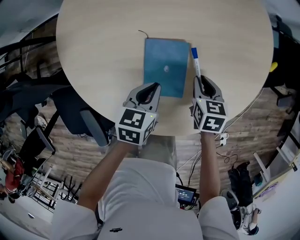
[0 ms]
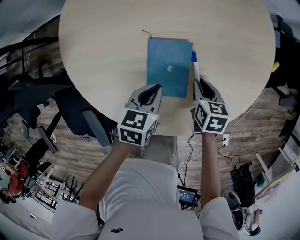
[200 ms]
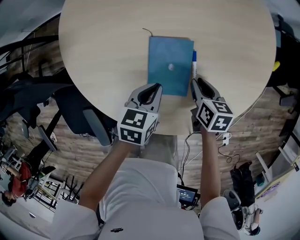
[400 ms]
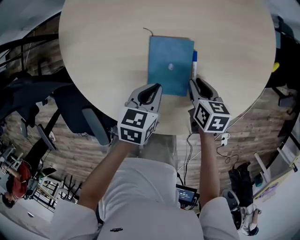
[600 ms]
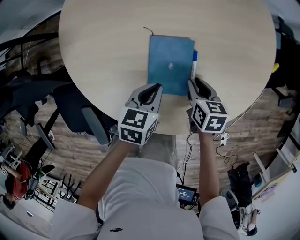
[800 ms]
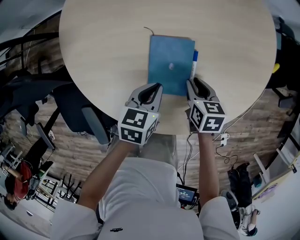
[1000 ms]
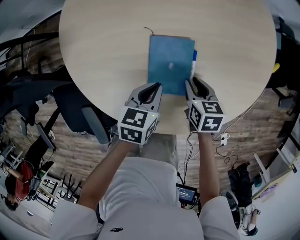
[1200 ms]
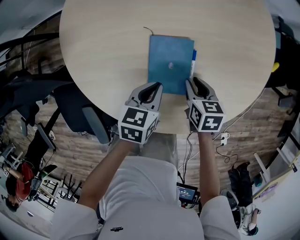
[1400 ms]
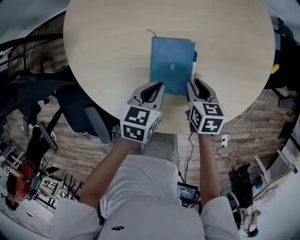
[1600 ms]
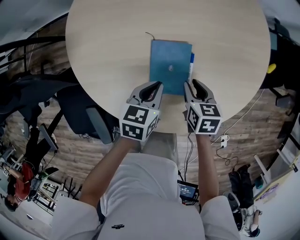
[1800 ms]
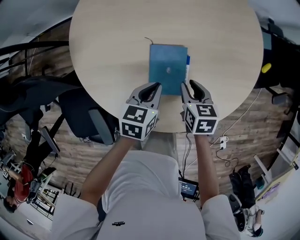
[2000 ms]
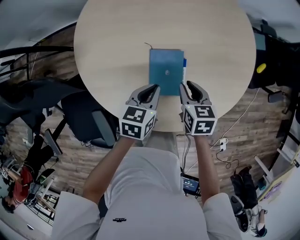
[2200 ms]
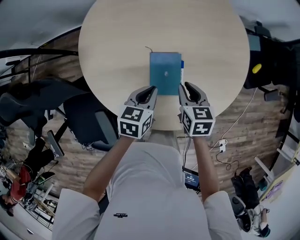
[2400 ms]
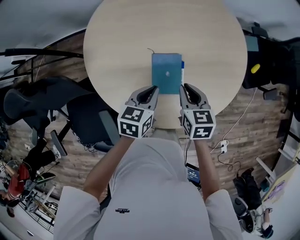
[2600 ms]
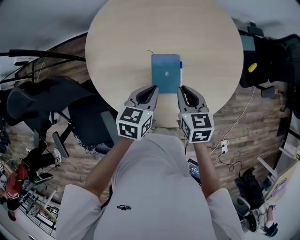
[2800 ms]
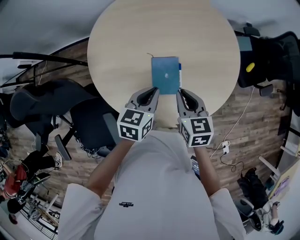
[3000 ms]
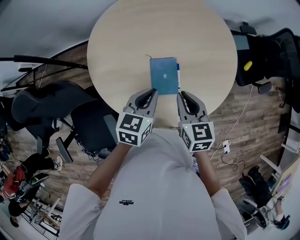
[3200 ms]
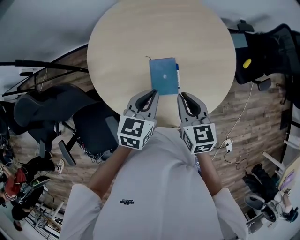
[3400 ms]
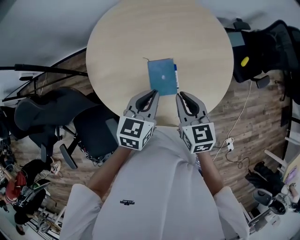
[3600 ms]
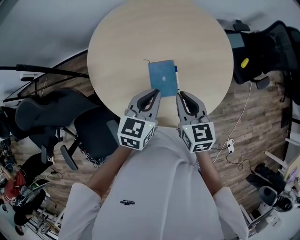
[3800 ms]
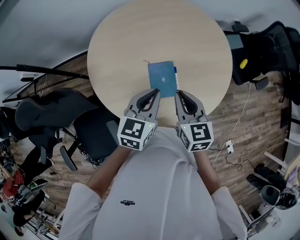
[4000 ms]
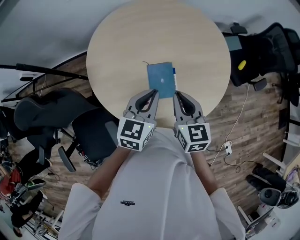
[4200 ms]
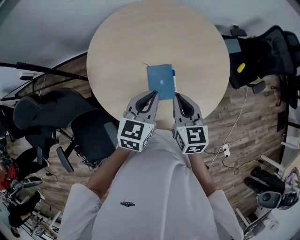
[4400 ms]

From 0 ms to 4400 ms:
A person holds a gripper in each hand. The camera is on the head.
From 0 ms to 1400 ms: The right gripper changes place by some 5 cm.
From 1400 ms to 3000 ms: The grippers both shift upward by roughly 25 cm. The right gripper changes its angle by about 20 degrees.
From 3000 ms to 4400 ms: Both grippers move upward, about 5 cm.

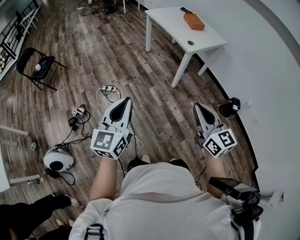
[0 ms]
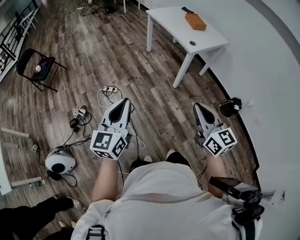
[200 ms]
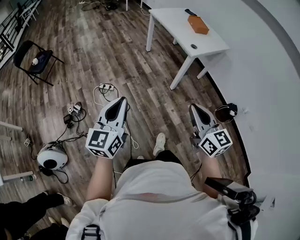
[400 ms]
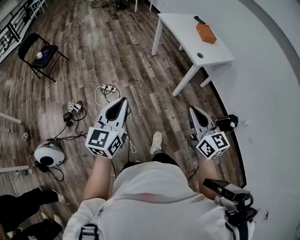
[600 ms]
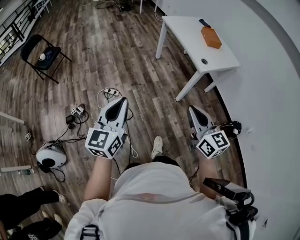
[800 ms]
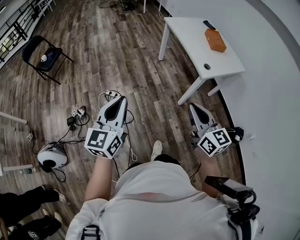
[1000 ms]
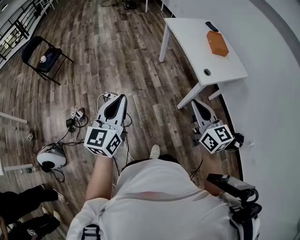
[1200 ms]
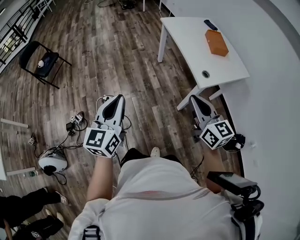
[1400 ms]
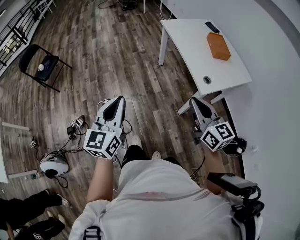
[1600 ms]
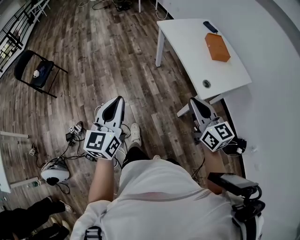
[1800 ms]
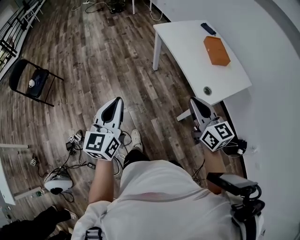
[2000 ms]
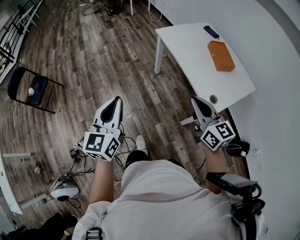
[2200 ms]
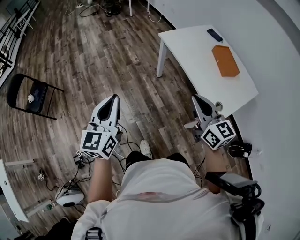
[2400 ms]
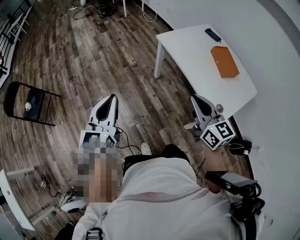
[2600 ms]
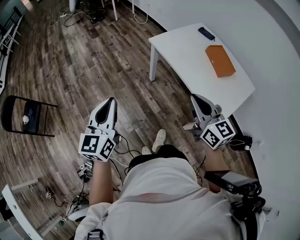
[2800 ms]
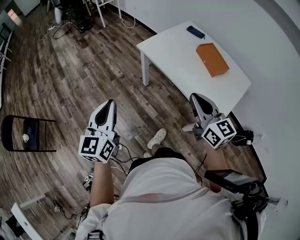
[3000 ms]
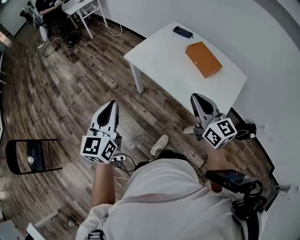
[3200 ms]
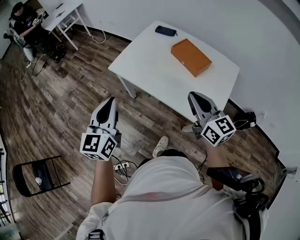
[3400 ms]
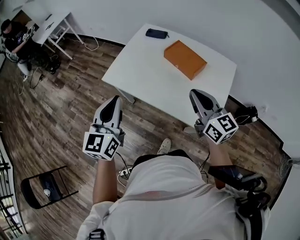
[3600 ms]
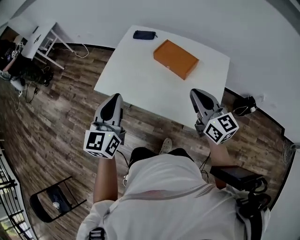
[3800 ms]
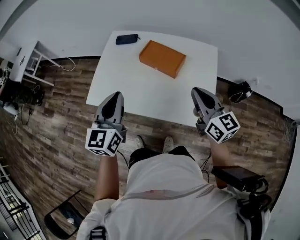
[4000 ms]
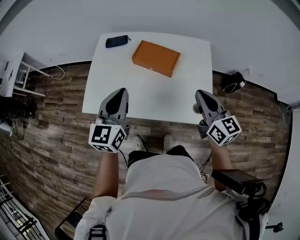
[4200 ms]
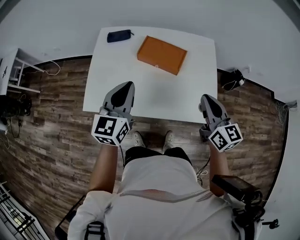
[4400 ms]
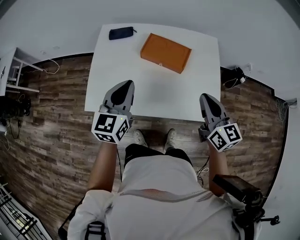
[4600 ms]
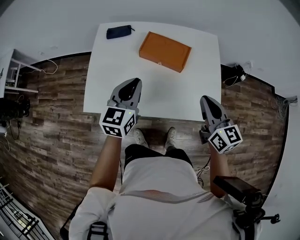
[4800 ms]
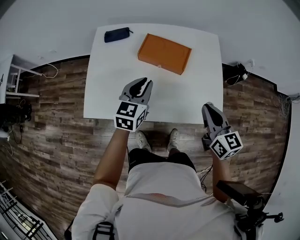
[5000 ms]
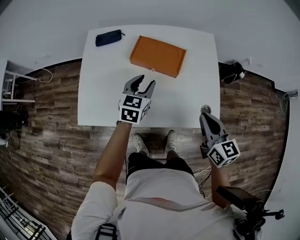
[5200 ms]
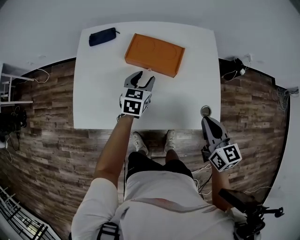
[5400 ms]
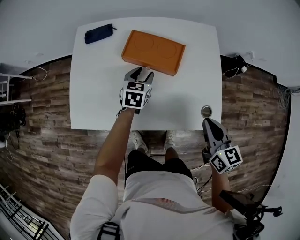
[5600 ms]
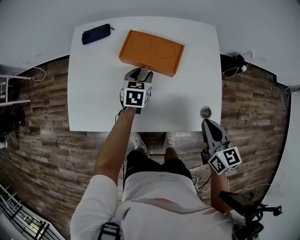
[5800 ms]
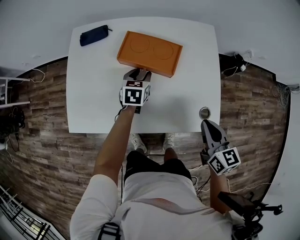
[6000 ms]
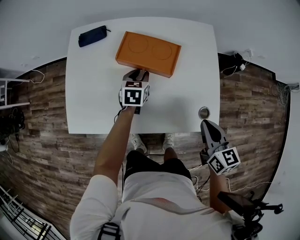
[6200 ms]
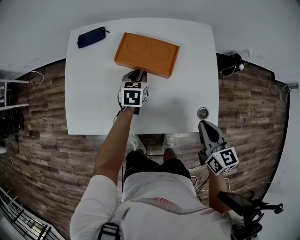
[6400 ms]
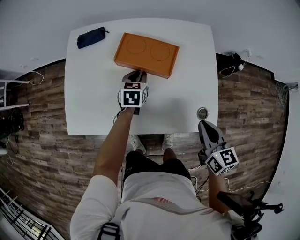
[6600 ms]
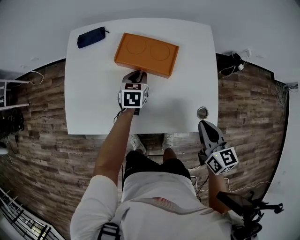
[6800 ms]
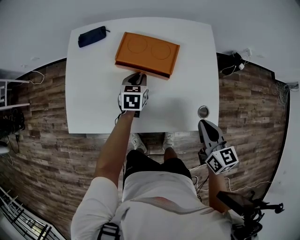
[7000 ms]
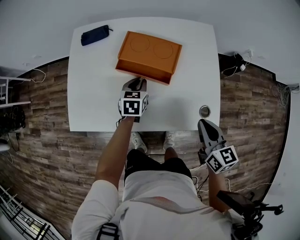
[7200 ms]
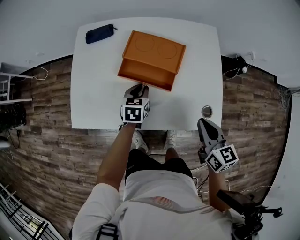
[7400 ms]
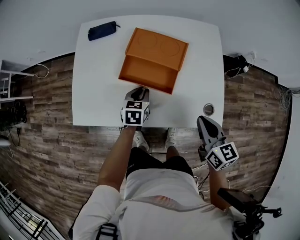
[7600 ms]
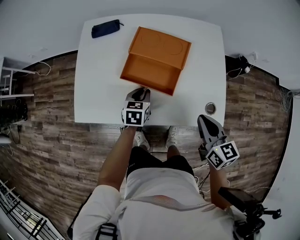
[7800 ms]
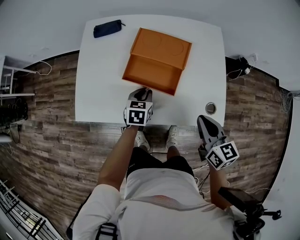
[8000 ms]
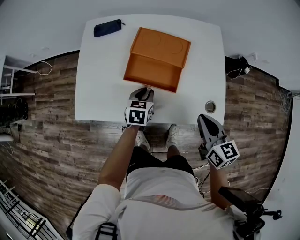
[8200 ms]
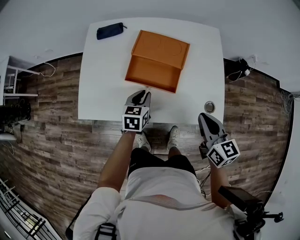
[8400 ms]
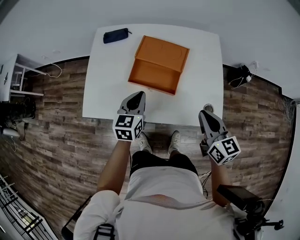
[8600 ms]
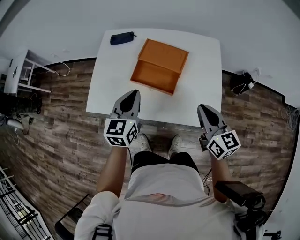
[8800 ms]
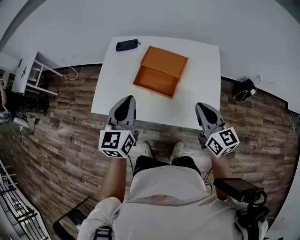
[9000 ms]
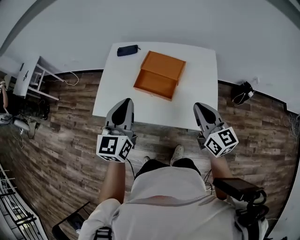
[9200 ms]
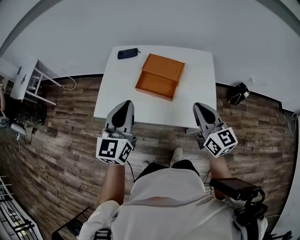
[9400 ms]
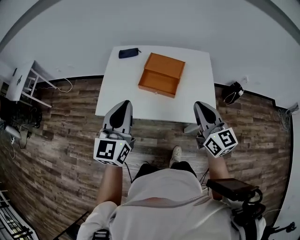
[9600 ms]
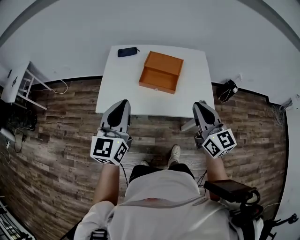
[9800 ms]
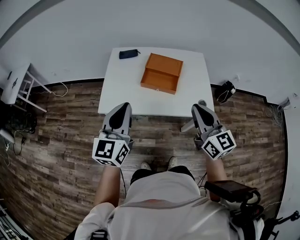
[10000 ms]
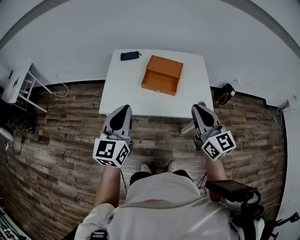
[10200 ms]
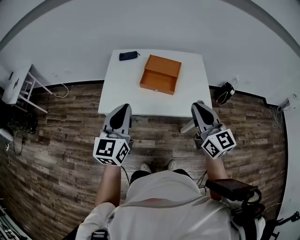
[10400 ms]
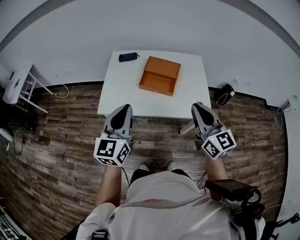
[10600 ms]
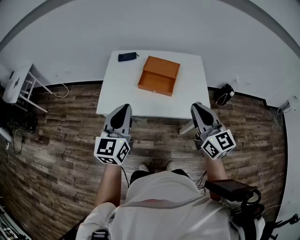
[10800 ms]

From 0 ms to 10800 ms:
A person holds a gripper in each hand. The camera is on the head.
From 0 ms to 1600 ms: Both grippers move forward, about 40 cm.
From 1600 ms to 3000 ms: The two grippers go roughly 40 cm forward. The right gripper changes its angle by approximately 20 degrees.
From 3000 ms to 4600 ms: The left gripper shifts by about 50 cm, and changes its angle by roughly 50 degrees. The right gripper moves approximately 25 cm, and turns by about 50 degrees.
From 4600 ms to 6200 ms: The right gripper heads downward and to the right, covering some 15 cm; the left gripper moves downward, forward and to the right, some 35 cm, tips its fingers downward by about 30 degrees, and opens up.
From 6200 ms to 7800 ms: The left gripper travels backward by about 10 cm; the right gripper moves roughly 5 cm.
From 7800 ms to 9200 ms: The left gripper is displaced upward and backward by roughly 35 cm, and tilts its fingers approximately 40 degrees upward; the right gripper moves upward, roughly 15 cm, and turns by some 20 degrees.
From 9200 ms to 10800 ms: The left gripper heads to the left and backward, covering about 15 cm. Meanwhile the right gripper goes some 20 cm to the left, backward and upward.

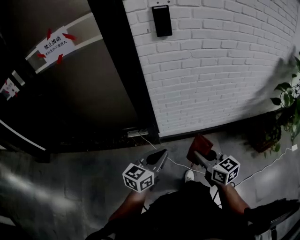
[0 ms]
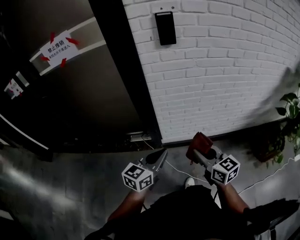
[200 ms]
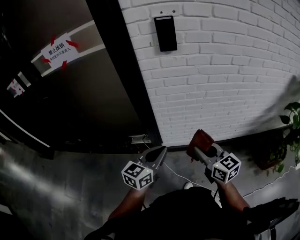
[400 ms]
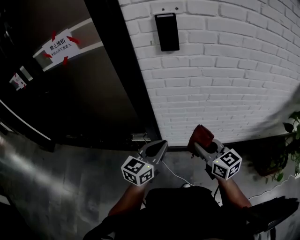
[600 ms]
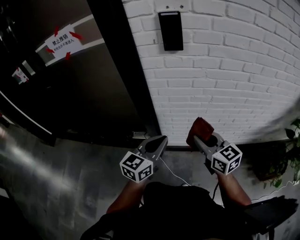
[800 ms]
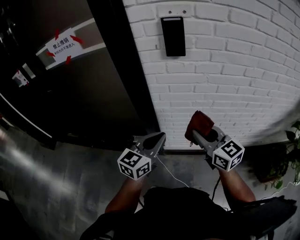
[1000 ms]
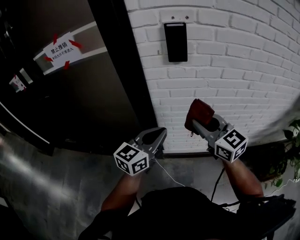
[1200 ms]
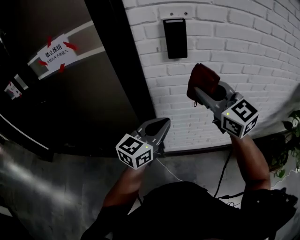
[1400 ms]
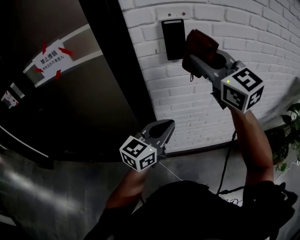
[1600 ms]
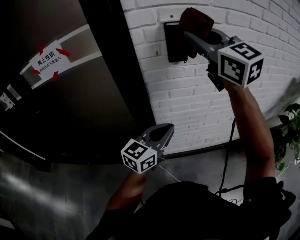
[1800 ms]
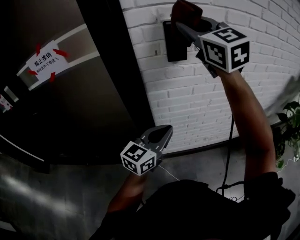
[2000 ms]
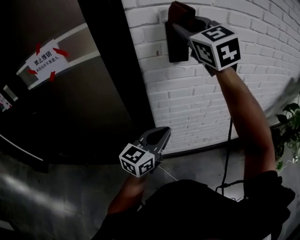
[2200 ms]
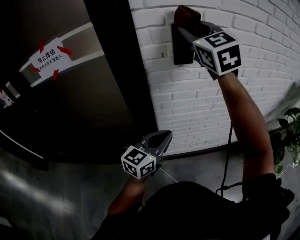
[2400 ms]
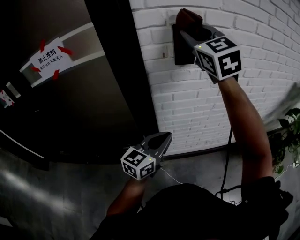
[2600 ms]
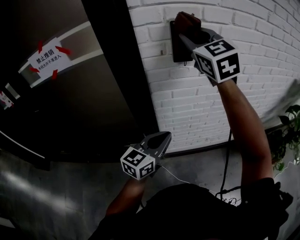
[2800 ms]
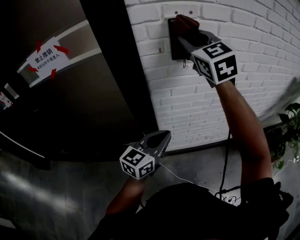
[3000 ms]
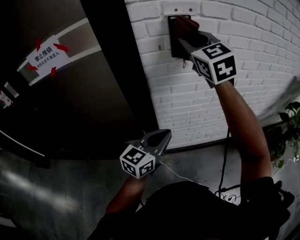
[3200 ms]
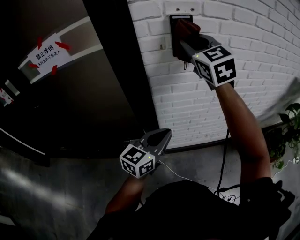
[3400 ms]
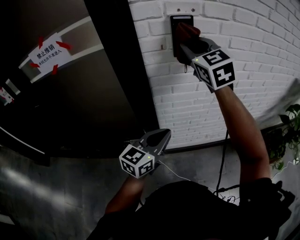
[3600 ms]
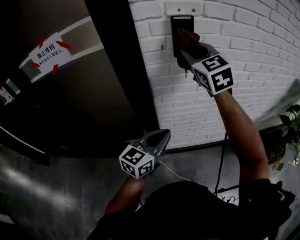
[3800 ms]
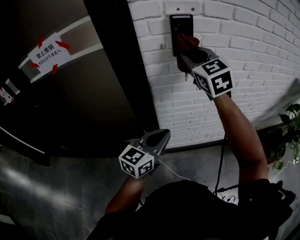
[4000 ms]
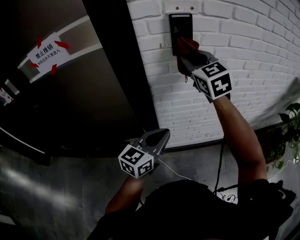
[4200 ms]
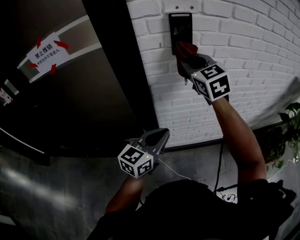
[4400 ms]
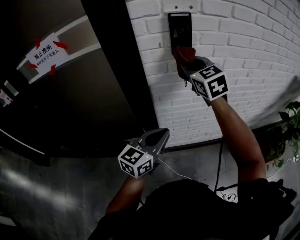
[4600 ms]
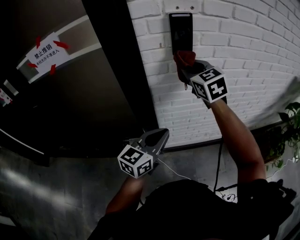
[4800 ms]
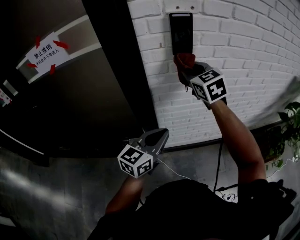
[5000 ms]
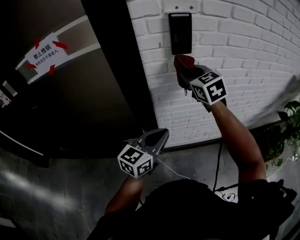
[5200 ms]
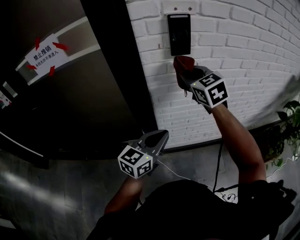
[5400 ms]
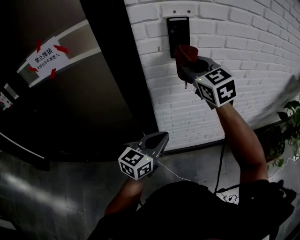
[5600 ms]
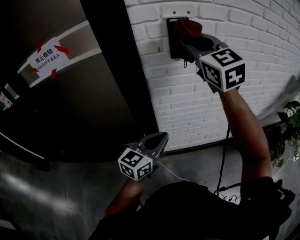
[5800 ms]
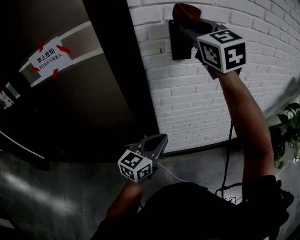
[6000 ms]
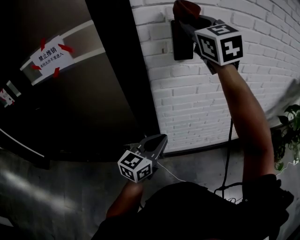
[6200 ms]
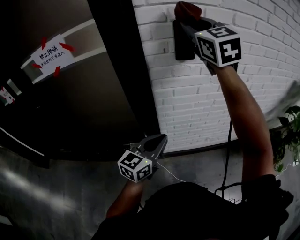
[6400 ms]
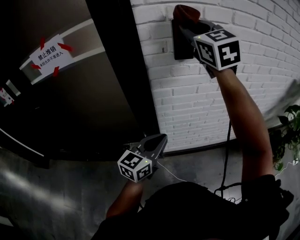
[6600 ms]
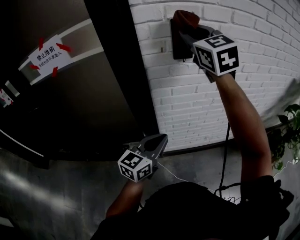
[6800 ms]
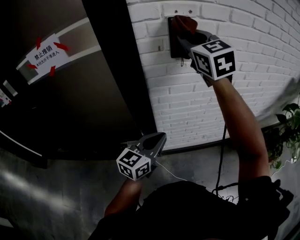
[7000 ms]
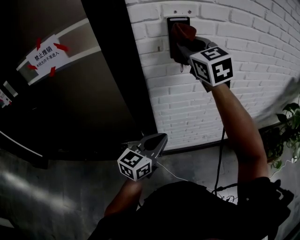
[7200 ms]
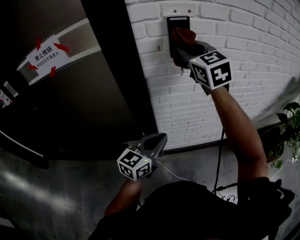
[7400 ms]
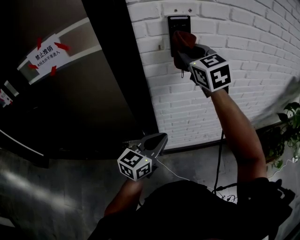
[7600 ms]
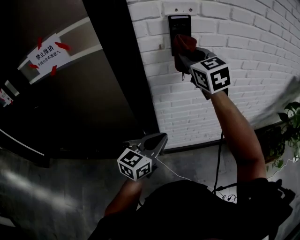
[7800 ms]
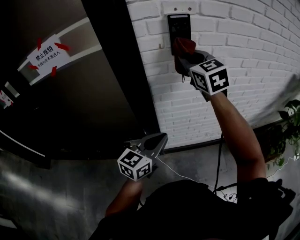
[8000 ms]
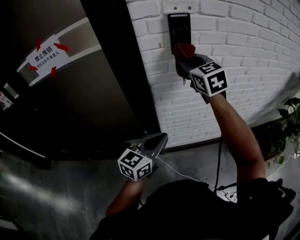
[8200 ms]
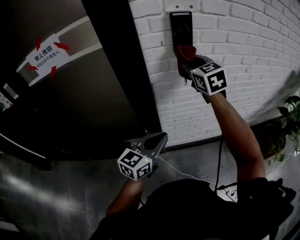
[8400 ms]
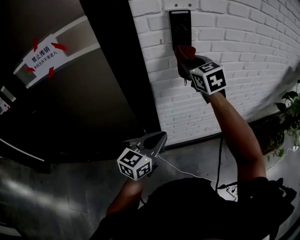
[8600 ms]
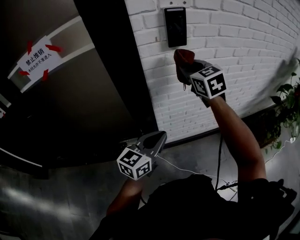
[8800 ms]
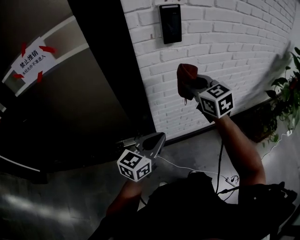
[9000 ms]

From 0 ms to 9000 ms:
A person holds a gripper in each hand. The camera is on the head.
From 0 ms to 1600 ms: The right gripper travels upward and forward by roughly 50 cm, and turns by some 40 degrees. The left gripper goes about 25 cm forward and upward.
From 1600 ms to 3000 ms: The left gripper changes place by some 5 cm; the right gripper heads forward, covering roughly 10 cm.
From 3000 ms to 4400 ms: The right gripper travels downward by approximately 10 cm.
From 4400 ms to 6000 ms: The right gripper is displaced upward by roughly 15 cm.
From 6000 ms to 7600 ms: The right gripper moves downward, approximately 10 cm.
From 7600 ms to 9000 ms: The left gripper ends up roughly 5 cm from where it was. The right gripper moves downward and backward, roughly 15 cm.
